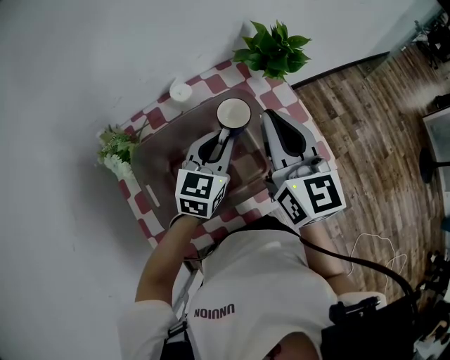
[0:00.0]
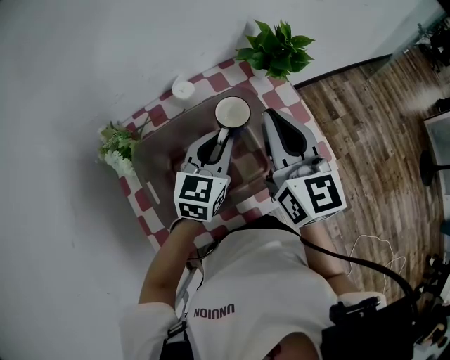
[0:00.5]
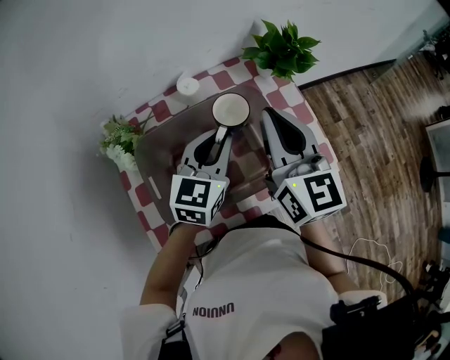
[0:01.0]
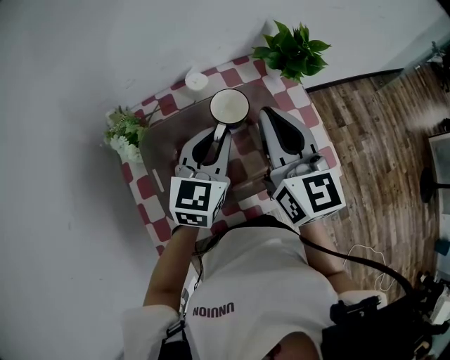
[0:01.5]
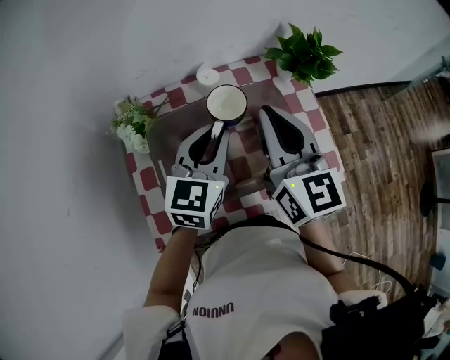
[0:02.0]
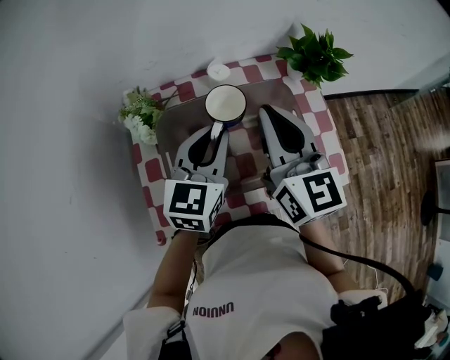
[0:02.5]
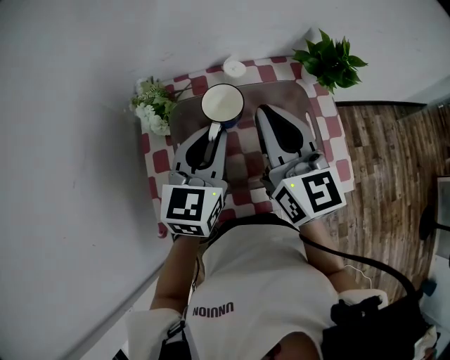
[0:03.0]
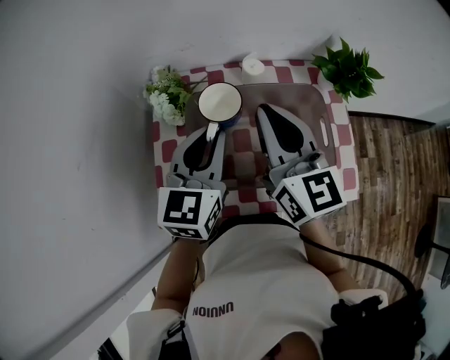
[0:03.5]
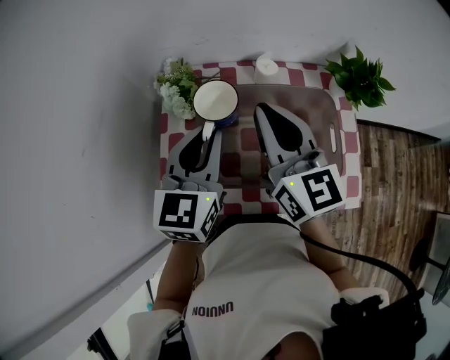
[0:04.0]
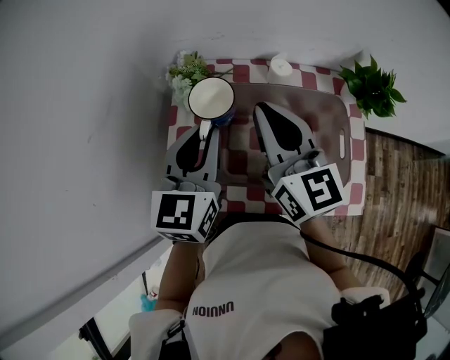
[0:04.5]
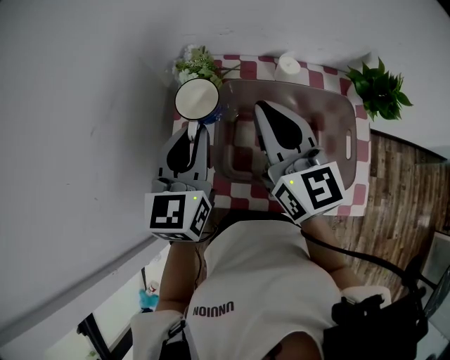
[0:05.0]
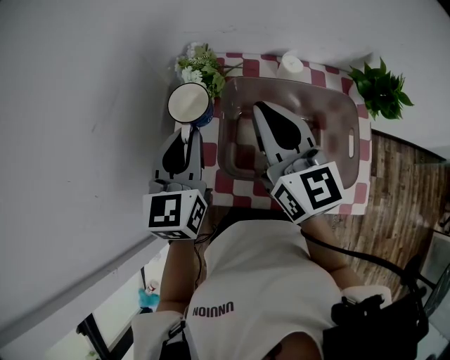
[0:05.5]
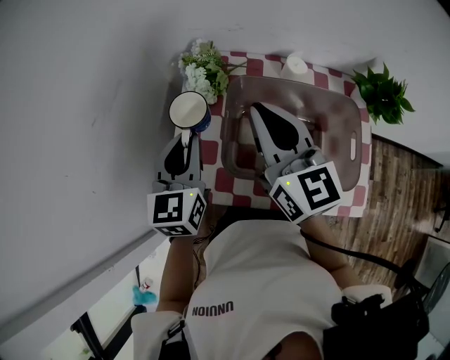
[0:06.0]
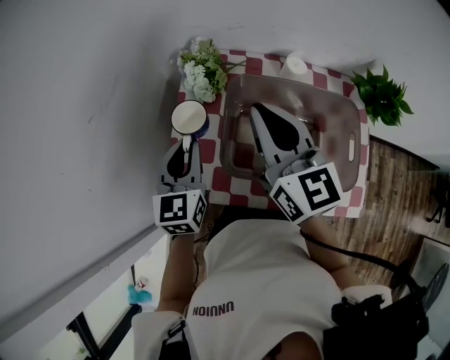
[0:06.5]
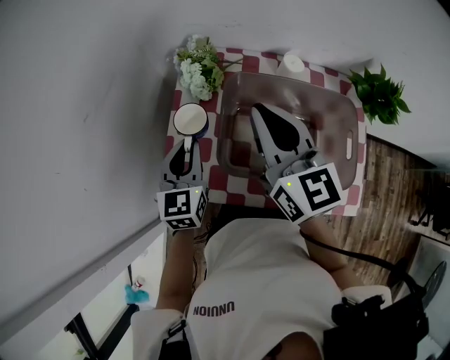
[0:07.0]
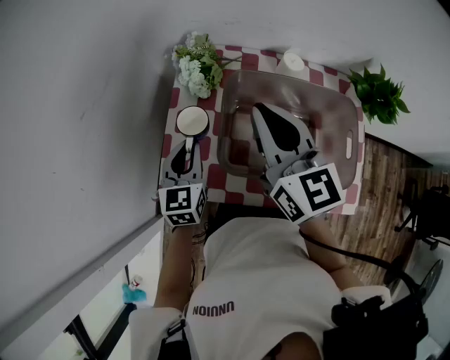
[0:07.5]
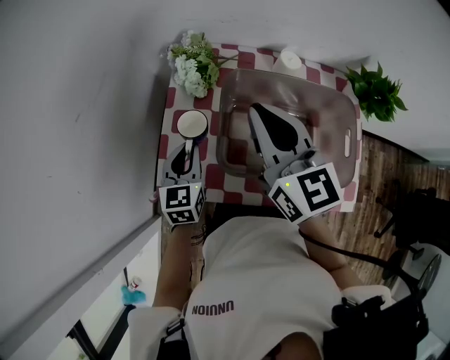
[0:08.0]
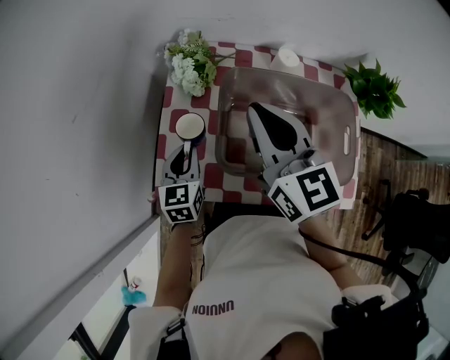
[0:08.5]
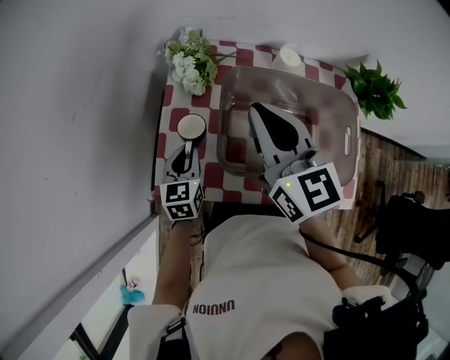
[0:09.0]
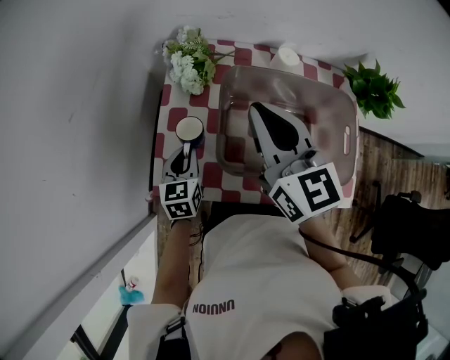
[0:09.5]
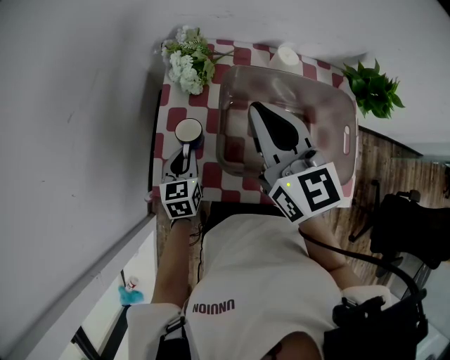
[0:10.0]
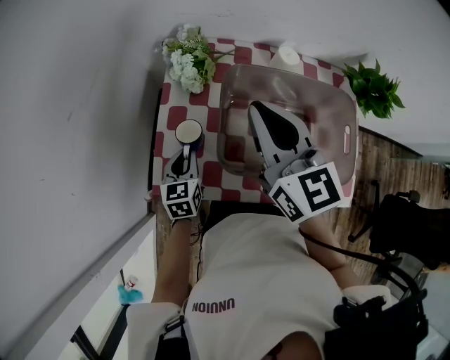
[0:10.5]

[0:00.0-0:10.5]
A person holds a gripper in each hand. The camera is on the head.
0:00.0 to 0:02.0: The right gripper heads to the left, covering roughly 5 cm. The left gripper moves upward and to the left, approximately 10 cm.
0:02.0 to 0:04.0: Both grippers travel together to the left, some 10 cm. The left gripper rotates approximately 20 degrees. Meanwhile the right gripper rotates roughly 20 degrees.
0:04.0 to 0:06.5: The left gripper shifts approximately 15 cm to the left and downward; the right gripper heads to the left, covering some 10 cm.
0:06.5 to 0:08.5: The left gripper shifts approximately 10 cm downward.
0:08.5 to 0:10.5: The left gripper travels downward by roughly 5 cm.

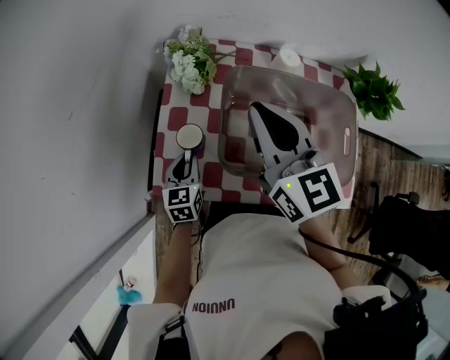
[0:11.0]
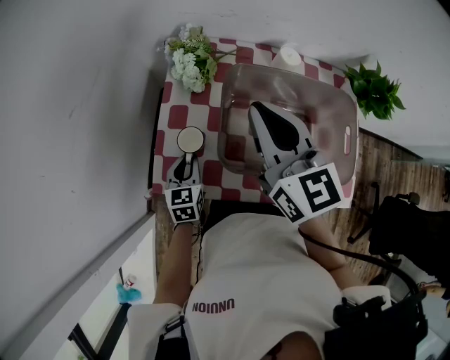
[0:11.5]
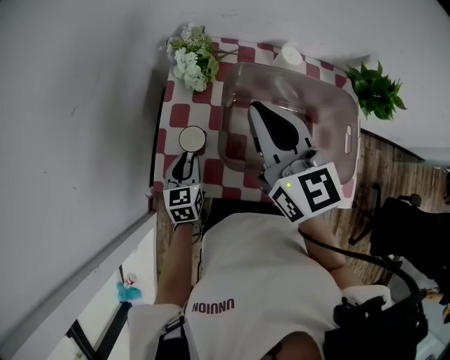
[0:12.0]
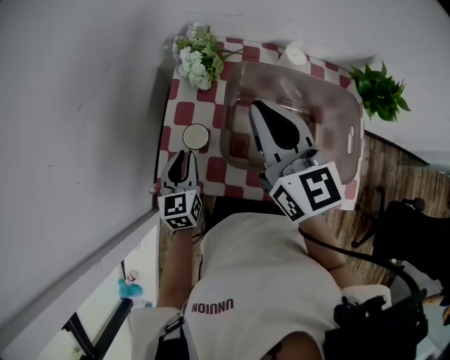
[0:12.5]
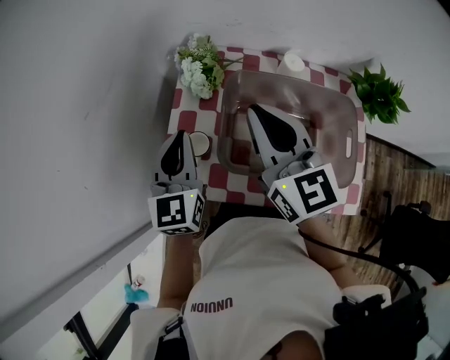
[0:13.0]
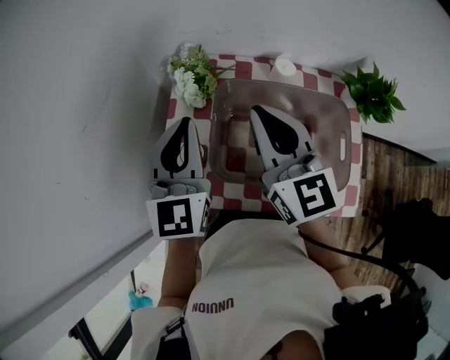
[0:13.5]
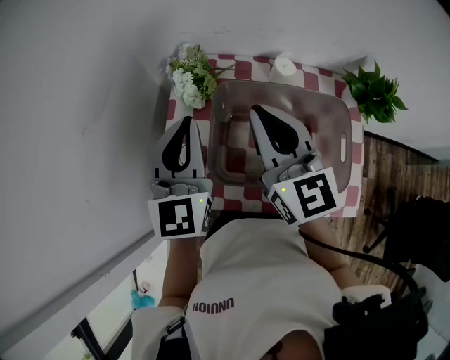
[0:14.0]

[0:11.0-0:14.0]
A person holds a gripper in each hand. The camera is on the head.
0:11.0 to 0:12.5: The left gripper goes about 5 cm upward.
0:12.5 to 0:14.0: The left gripper is displaced upward by about 25 cm, and turns by some 30 degrees.

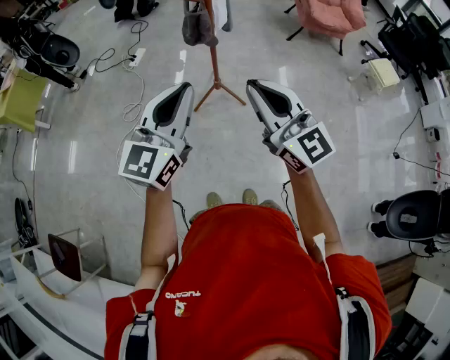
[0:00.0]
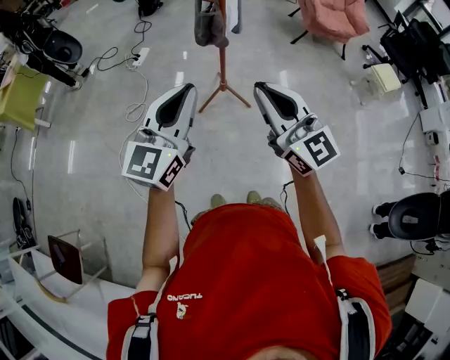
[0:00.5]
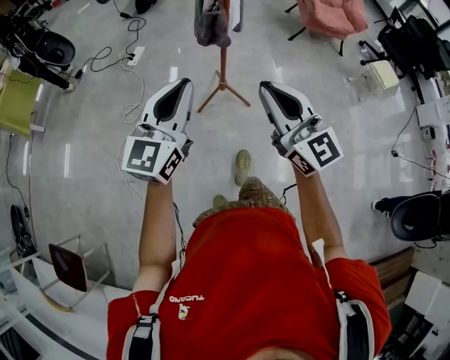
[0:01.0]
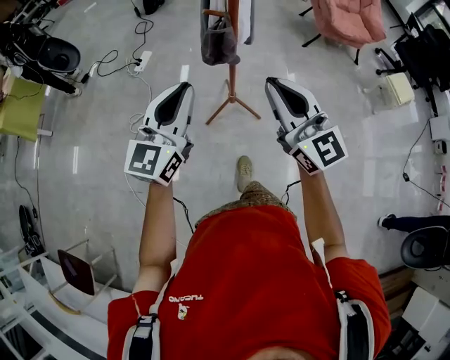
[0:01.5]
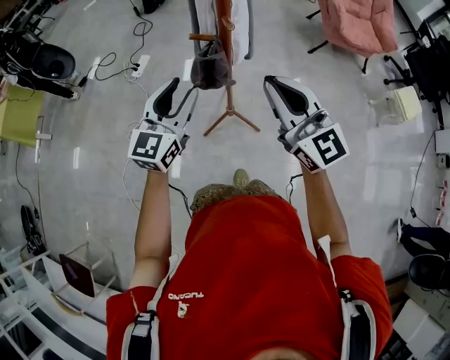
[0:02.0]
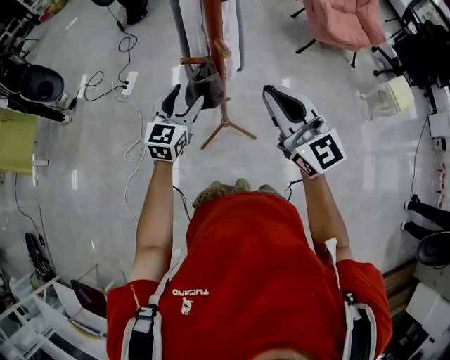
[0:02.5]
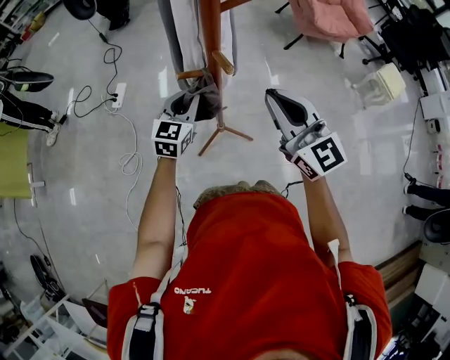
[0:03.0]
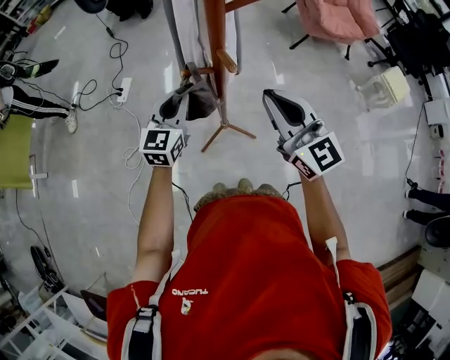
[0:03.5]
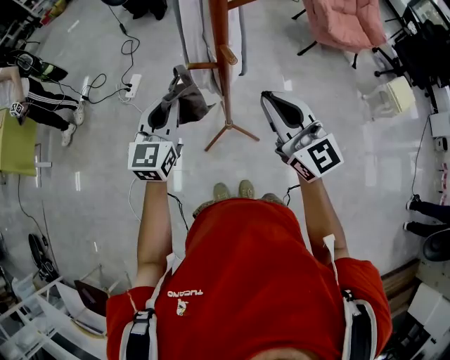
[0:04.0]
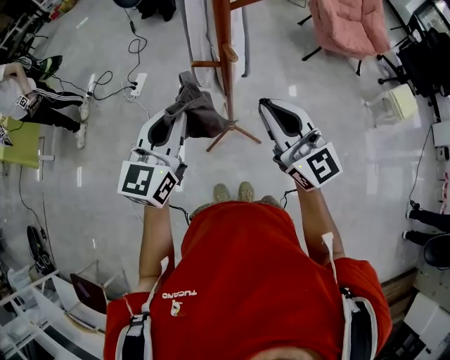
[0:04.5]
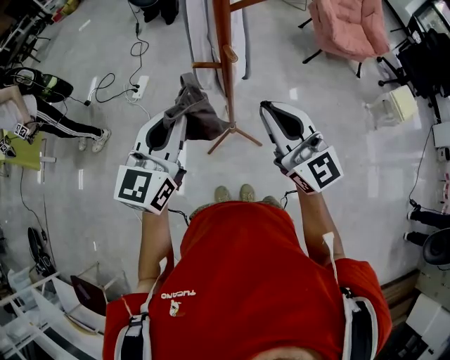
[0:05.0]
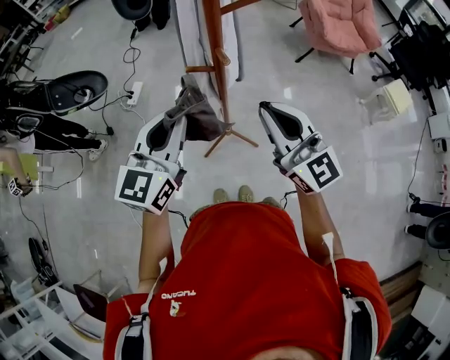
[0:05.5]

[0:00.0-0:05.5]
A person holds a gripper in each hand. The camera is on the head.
0:00.0 to 0:02.0: The two grippers go roughly 35 cm forward. The left gripper opens up.
0:02.0 to 0:03.5: The left gripper shifts about 15 cm forward and downward, and closes its fingers. Meanwhile the right gripper heads forward, covering roughly 5 cm.
0:03.5 to 0:05.5: The right gripper heads backward, covering roughly 5 cm; the left gripper is displaced upward and backward by some 20 cm.

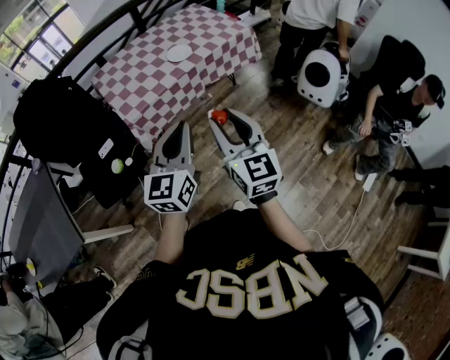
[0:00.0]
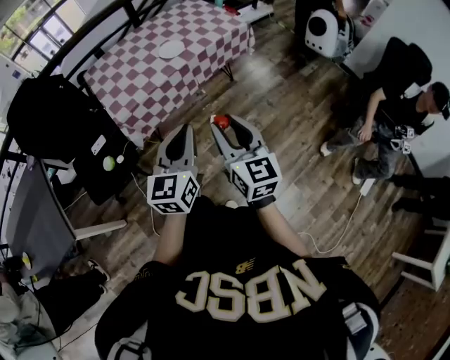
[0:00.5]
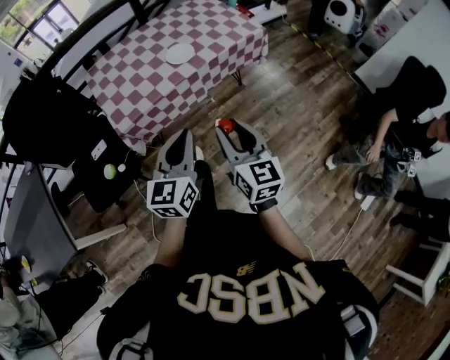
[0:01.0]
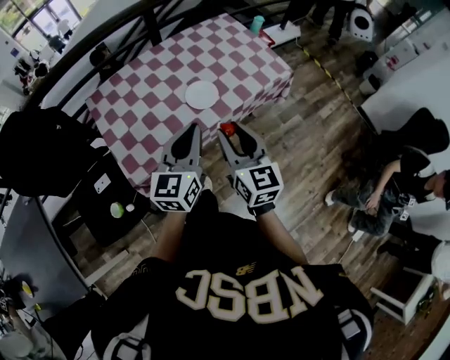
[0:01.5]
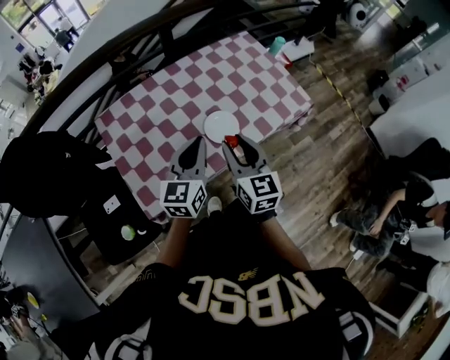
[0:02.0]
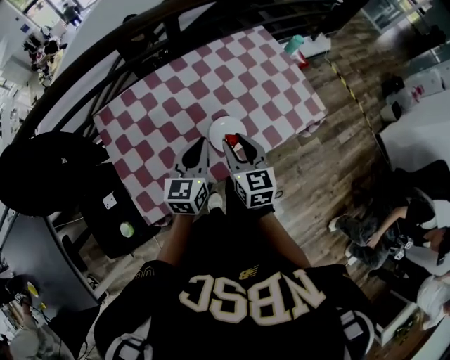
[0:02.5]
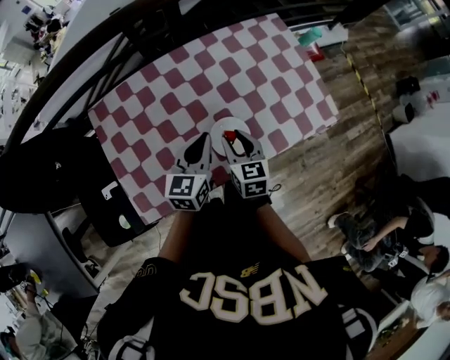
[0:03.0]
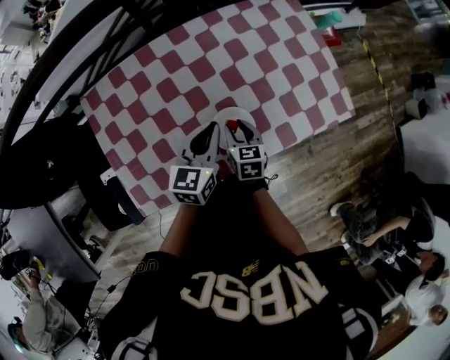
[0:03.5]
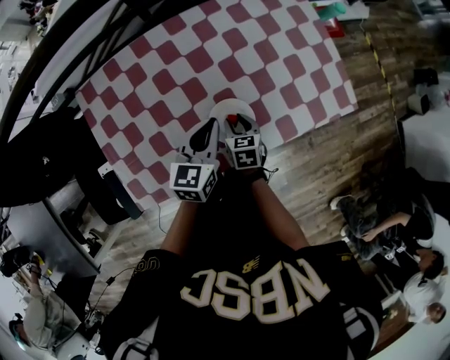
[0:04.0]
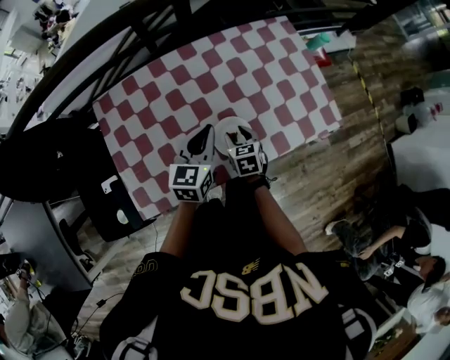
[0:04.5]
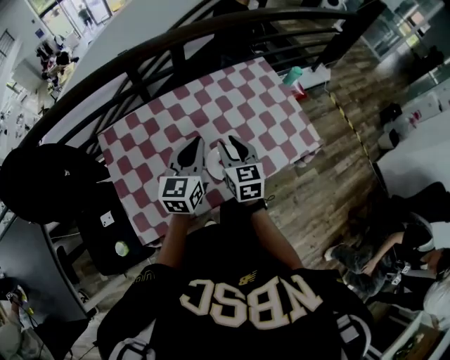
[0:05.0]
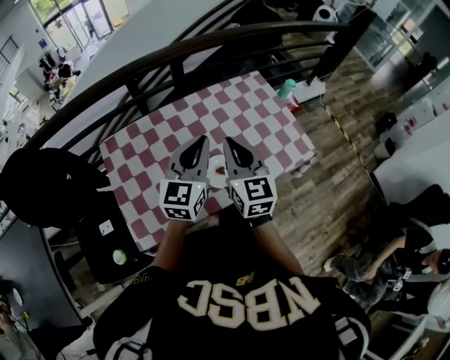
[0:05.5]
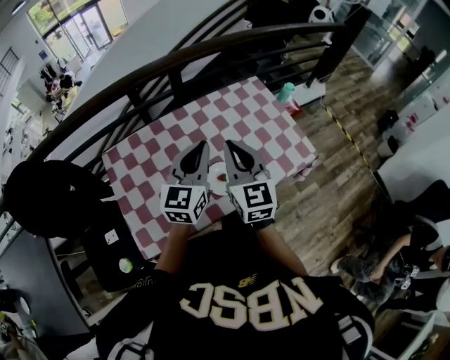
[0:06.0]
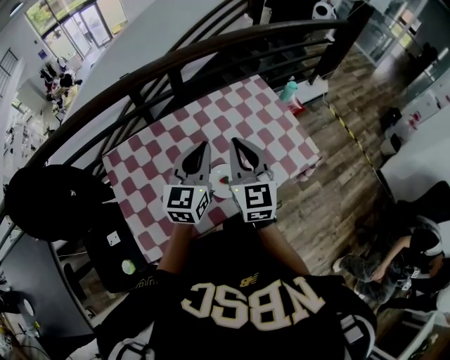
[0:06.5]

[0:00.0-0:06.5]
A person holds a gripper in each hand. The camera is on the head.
0:00.0 to 0:02.0: Both grippers are carried forward, some 50 cm.
0:02.0 to 0:04.5: The left gripper travels forward and downward by roughly 15 cm. Meanwhile the right gripper travels downward and forward by roughly 30 cm, and points its fingers some 30 degrees further downward.
0:04.5 to 0:06.5: The left gripper shifts approximately 15 cm upward, and swivels about 20 degrees. The right gripper travels upward by about 35 cm, tips its fingers upward by about 40 degrees, and closes.

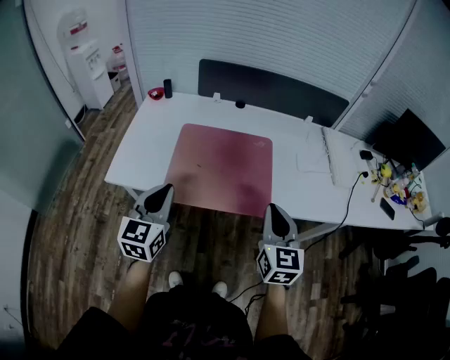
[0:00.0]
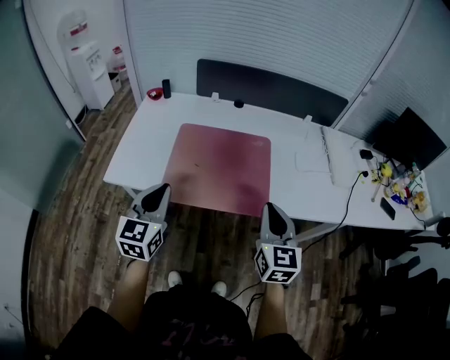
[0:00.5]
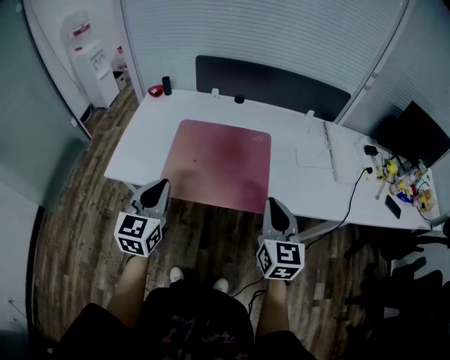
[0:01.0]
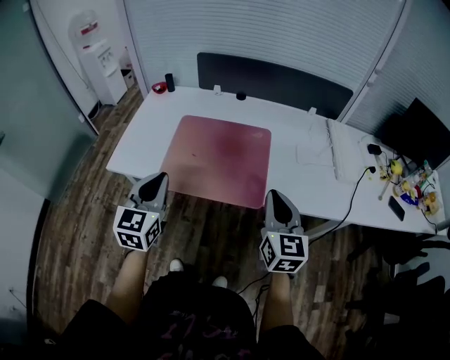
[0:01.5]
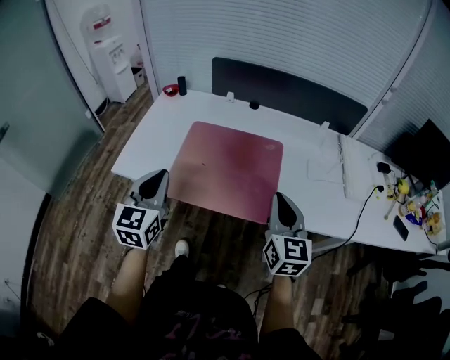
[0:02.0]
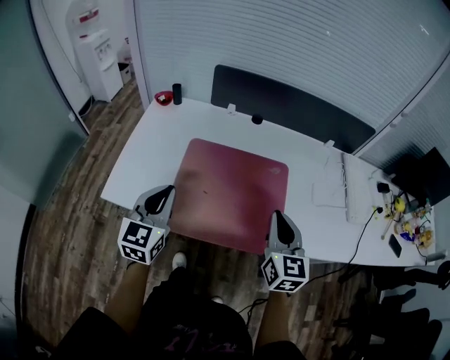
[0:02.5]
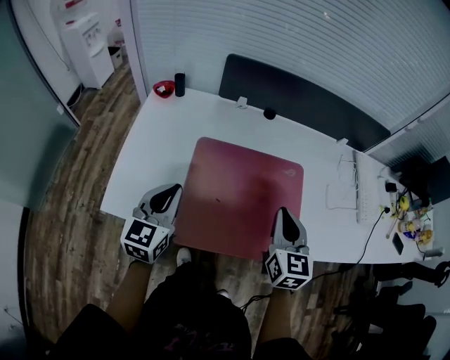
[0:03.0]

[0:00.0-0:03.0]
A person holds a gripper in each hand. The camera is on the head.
0:00.0 to 0:01.5: Both grippers move to the right, roughly 5 cm.
0:01.5 to 0:03.0: Both grippers move forward and to the left, about 25 cm.
